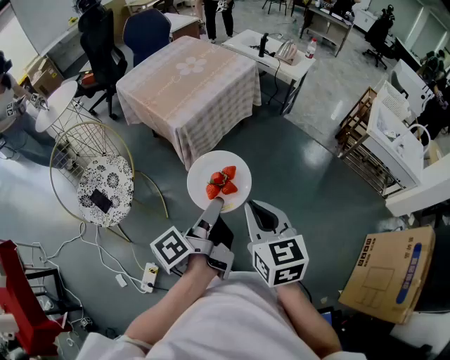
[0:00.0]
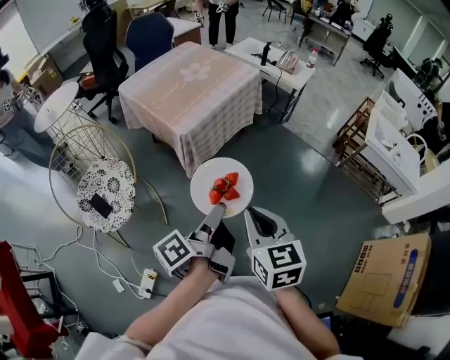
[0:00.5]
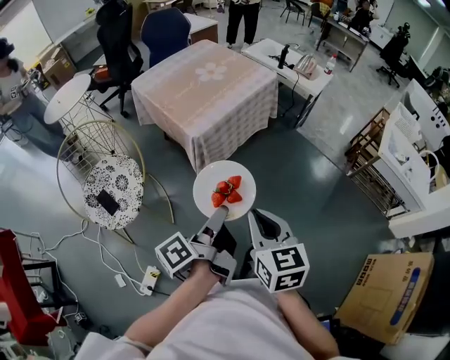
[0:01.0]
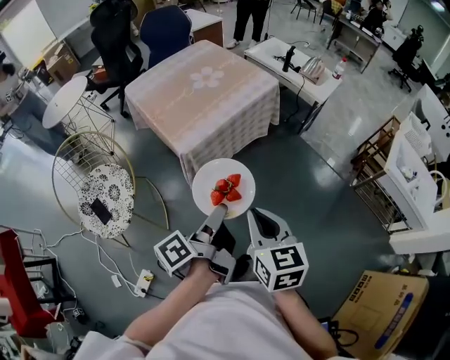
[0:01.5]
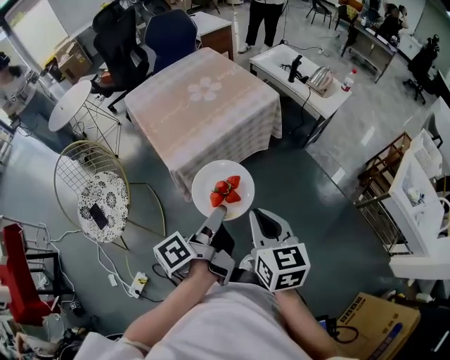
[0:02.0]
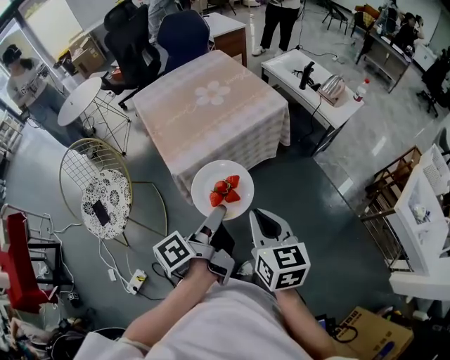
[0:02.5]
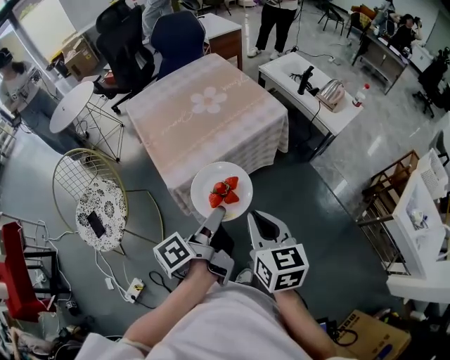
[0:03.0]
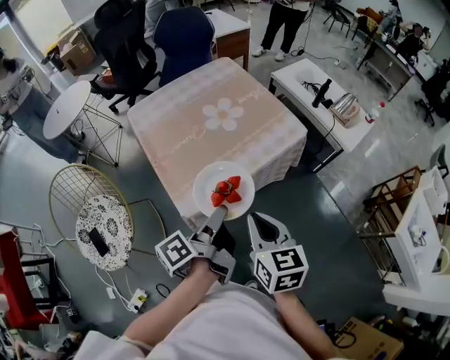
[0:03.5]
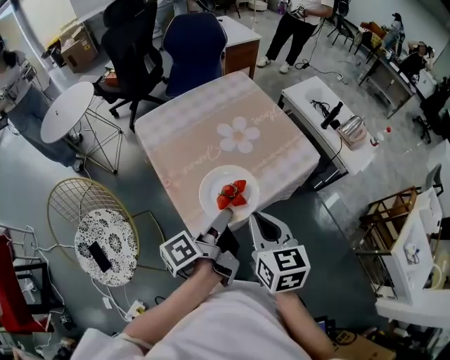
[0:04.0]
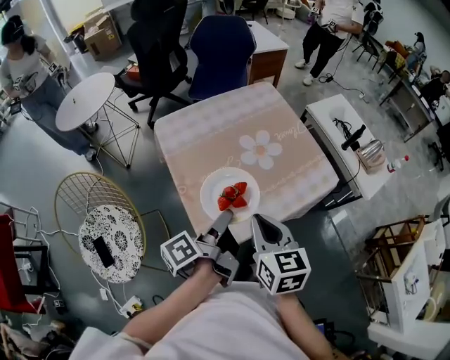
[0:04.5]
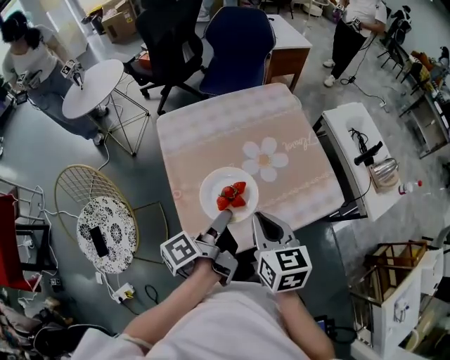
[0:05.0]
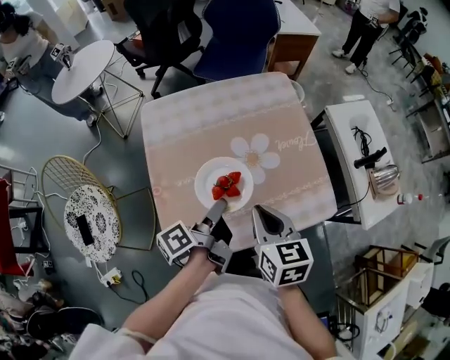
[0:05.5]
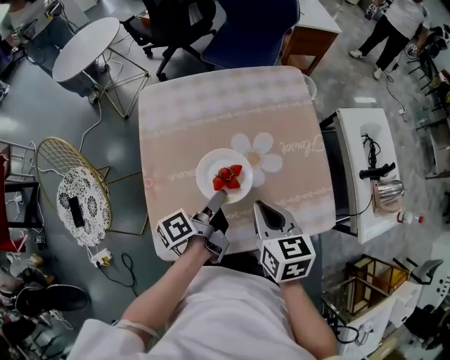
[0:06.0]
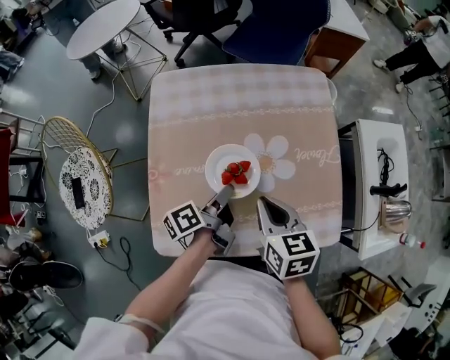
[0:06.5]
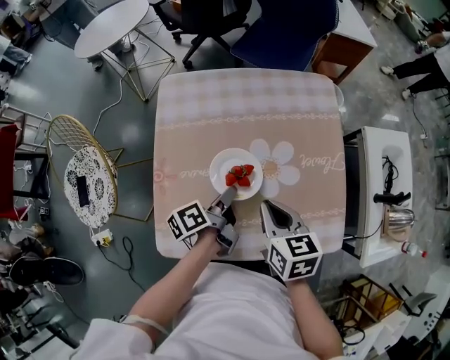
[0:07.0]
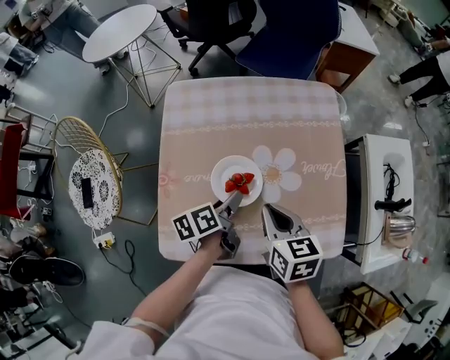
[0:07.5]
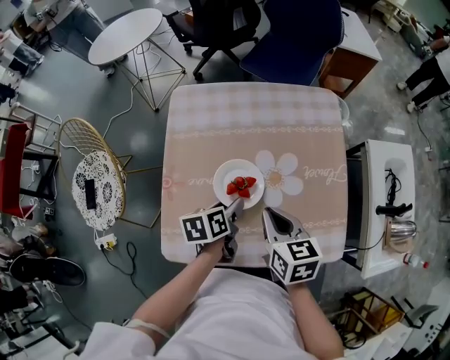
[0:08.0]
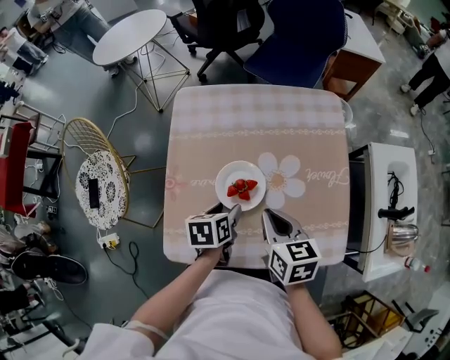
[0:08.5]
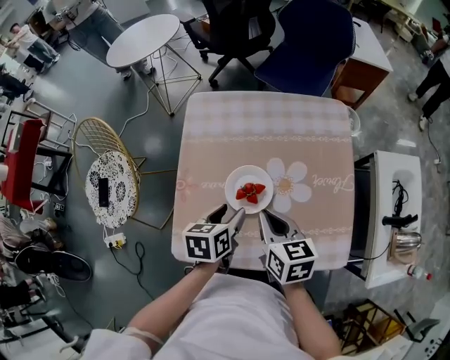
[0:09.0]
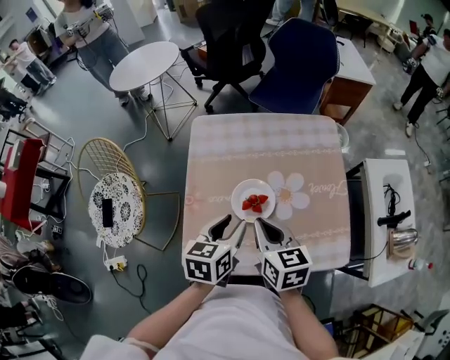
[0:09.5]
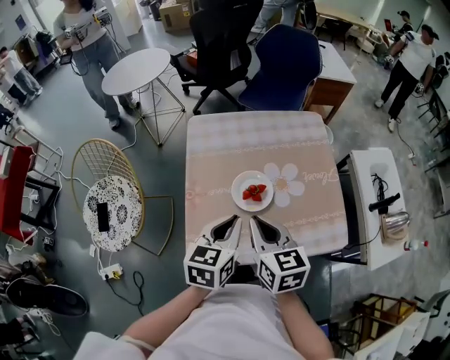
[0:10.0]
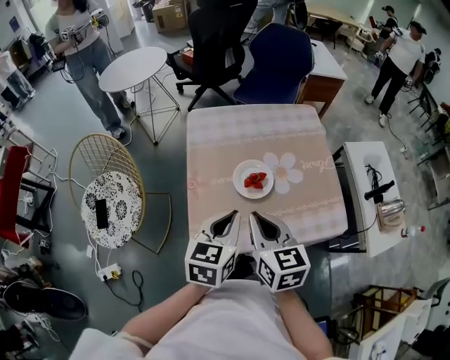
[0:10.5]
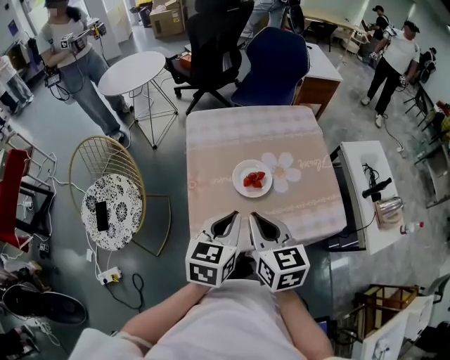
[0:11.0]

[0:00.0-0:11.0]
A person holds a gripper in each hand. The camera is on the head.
0:00.0 to 0:02.0: The right gripper ends up approximately 25 cm from where it was.
0:02.0 to 0:03.5: The right gripper moves approximately 20 cm.
0:03.5 to 0:05.5: The right gripper changes place by about 30 cm, and changes its angle by approximately 20 degrees.
0:05.5 to 0:07.5: The right gripper ends up about 10 cm from where it was.
0:09.0 to 0:11.0: The right gripper moves about 20 cm.

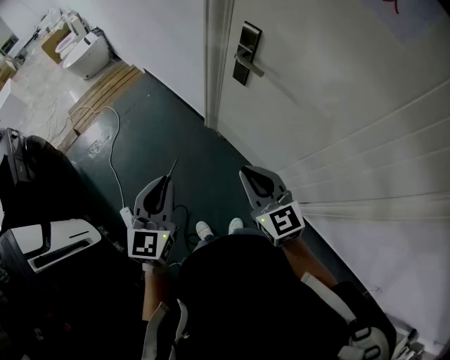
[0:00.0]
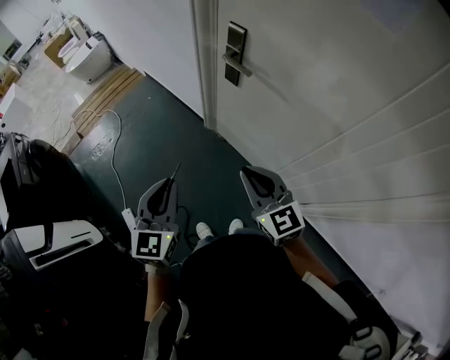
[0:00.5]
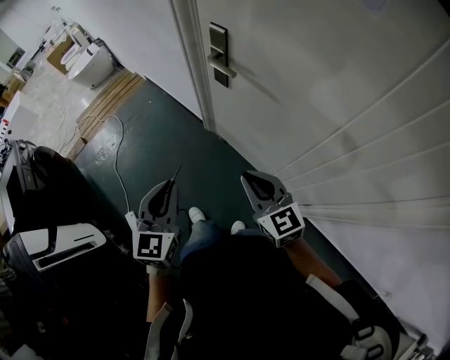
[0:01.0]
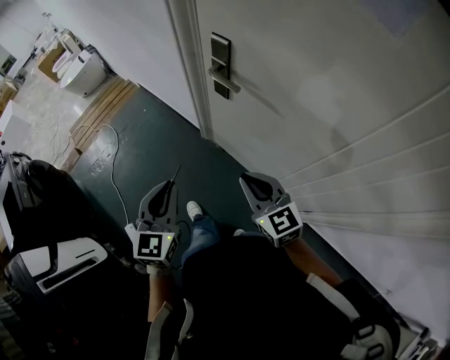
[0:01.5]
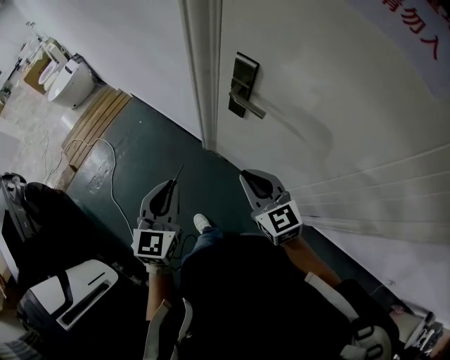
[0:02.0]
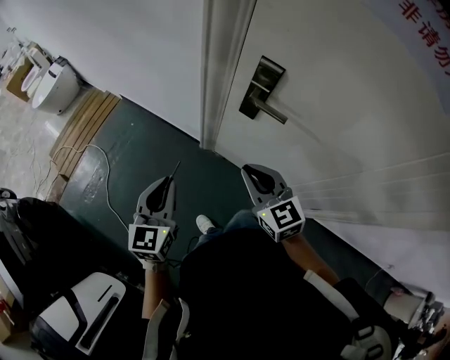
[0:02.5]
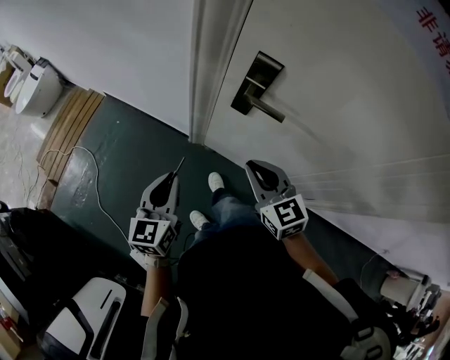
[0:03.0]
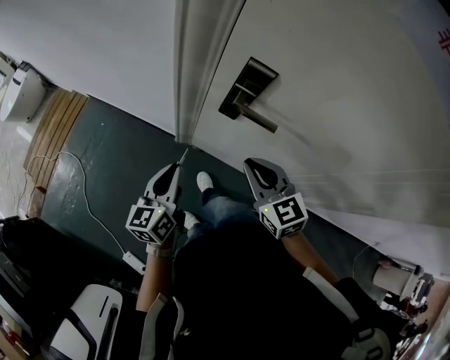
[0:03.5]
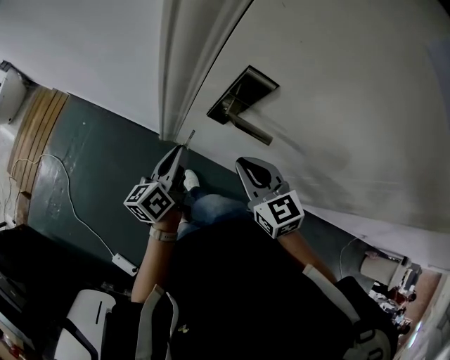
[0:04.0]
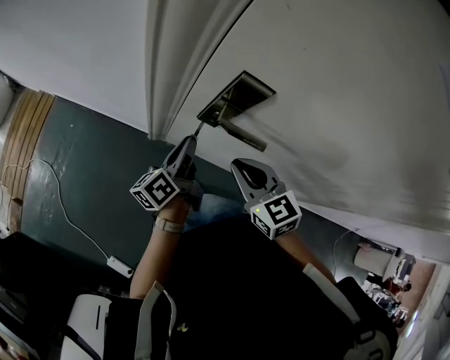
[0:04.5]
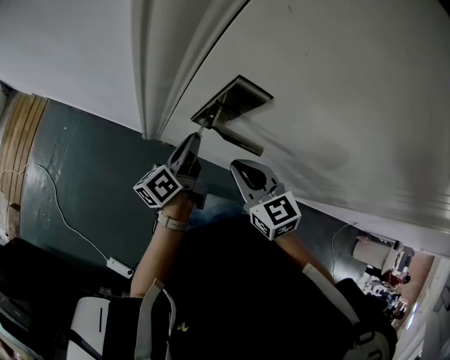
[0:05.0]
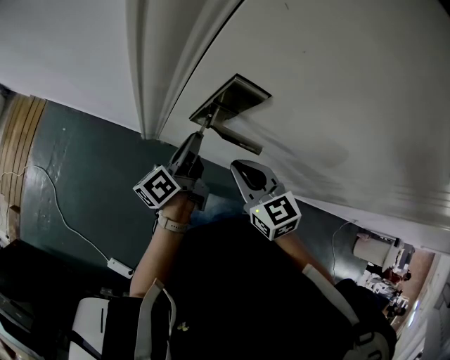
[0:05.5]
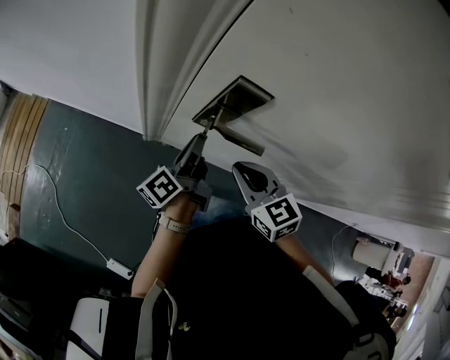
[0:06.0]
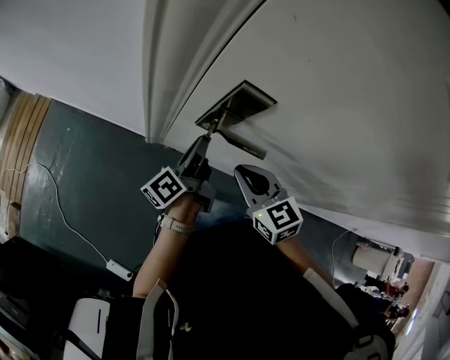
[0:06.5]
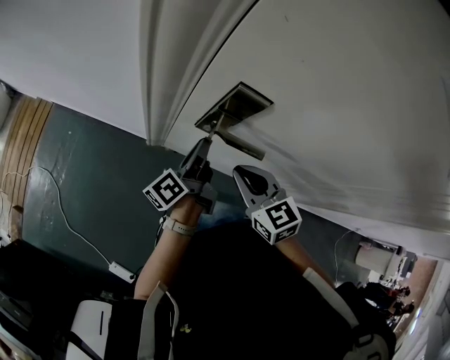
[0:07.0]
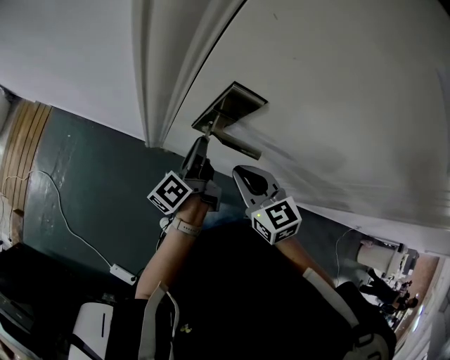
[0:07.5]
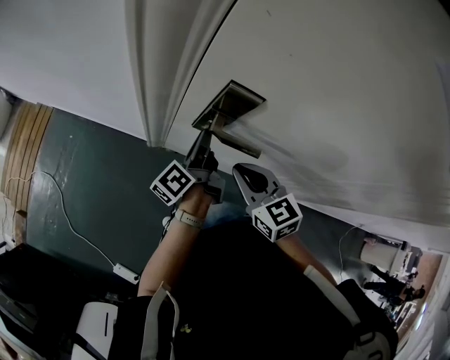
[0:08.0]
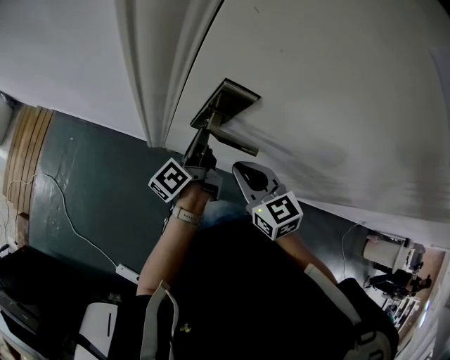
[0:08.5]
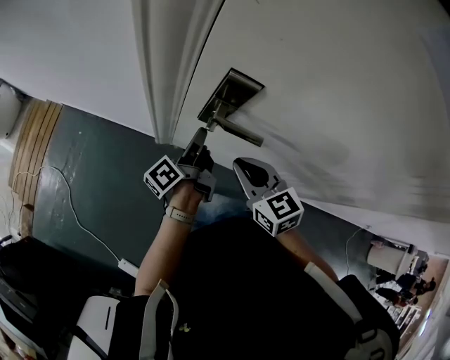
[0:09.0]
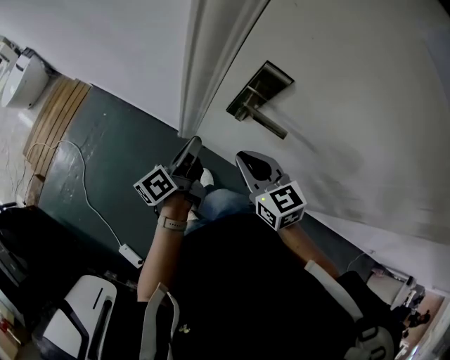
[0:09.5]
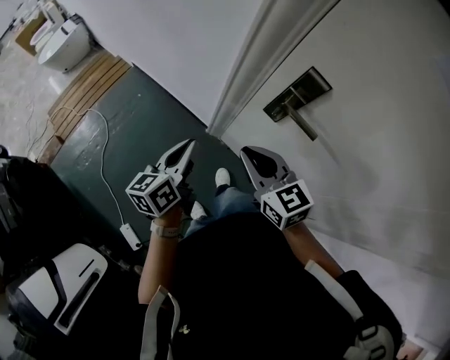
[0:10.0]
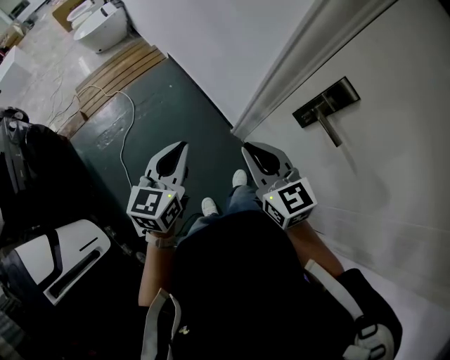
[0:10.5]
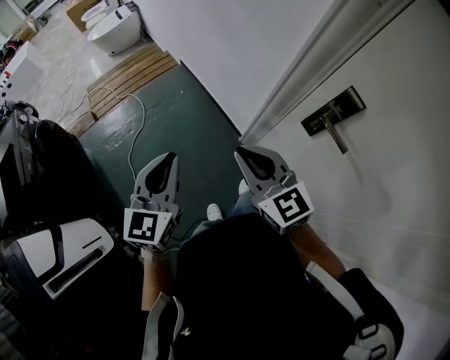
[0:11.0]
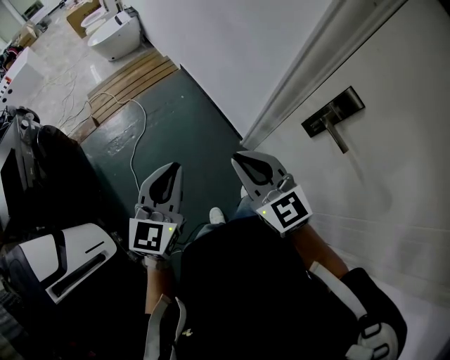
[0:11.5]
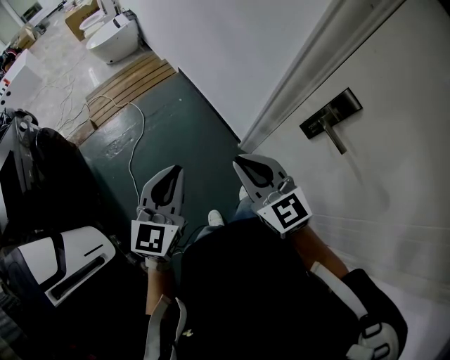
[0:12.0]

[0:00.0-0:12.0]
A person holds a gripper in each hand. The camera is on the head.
0:00.0 to 0:02.0: The two grippers go roughly 20 cm forward.
0:02.0 to 0:04.0: The left gripper travels forward and downward by about 25 cm, and rotates around the line of its fingers by approximately 60 degrees, counterclockwise from behind. Meanwhile the right gripper goes approximately 15 cm forward.
0:04.0 to 0:06.0: The left gripper moves to the right and forward, roughly 10 cm, and rotates approximately 30 degrees.
0:06.0 to 0:08.0: The grippers stay close to where they were, moving slightly.
0:08.0 to 0:10.0: The left gripper shifts about 30 cm to the left and backward, and rolls clockwise, seen from behind, by roughly 40 degrees; the right gripper heads to the left and backward, covering approximately 15 cm, and changes its angle by some 30 degrees.
0:10.0 to 0:12.0: The right gripper shifts roughly 15 cm to the left, and swivels roughly 20 degrees. Meanwhile the left gripper moves to the left, backward and upward, approximately 20 cm, and changes its angle by some 40 degrees.

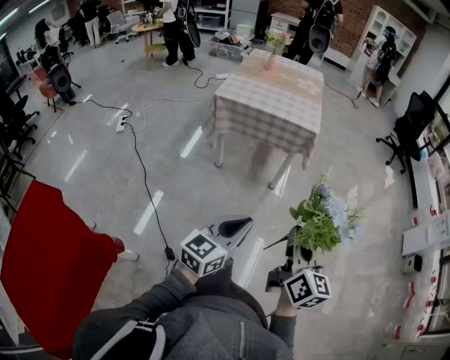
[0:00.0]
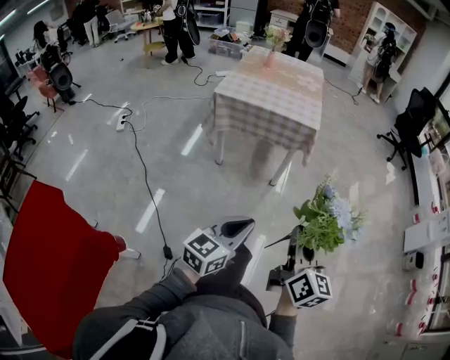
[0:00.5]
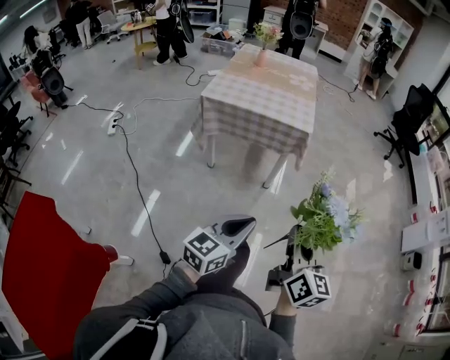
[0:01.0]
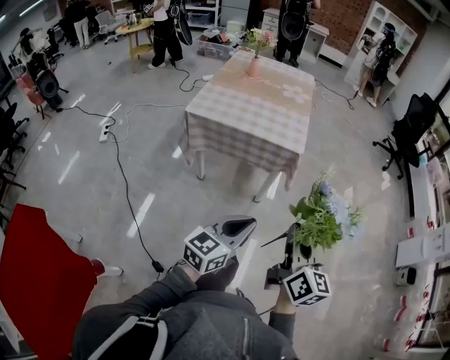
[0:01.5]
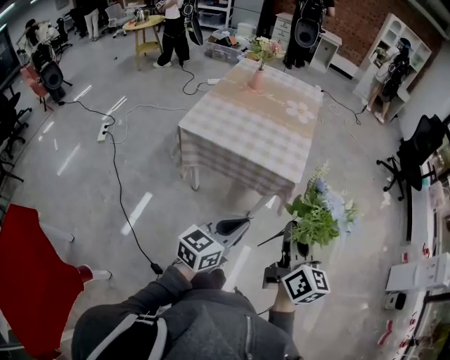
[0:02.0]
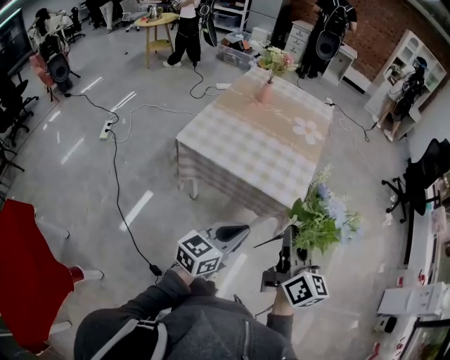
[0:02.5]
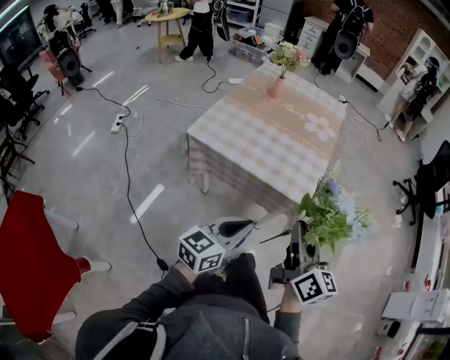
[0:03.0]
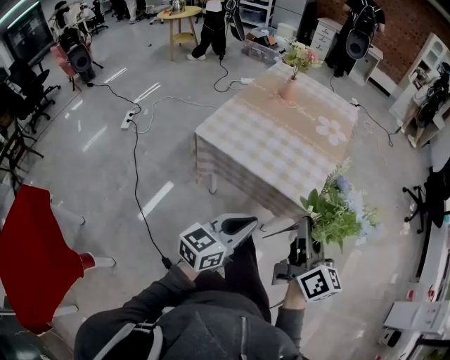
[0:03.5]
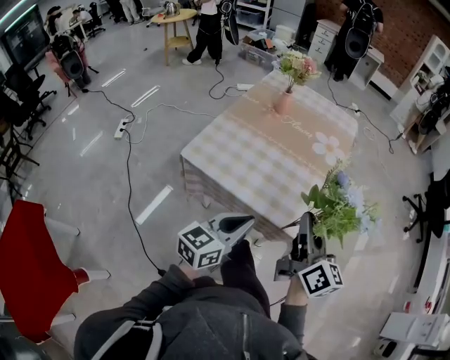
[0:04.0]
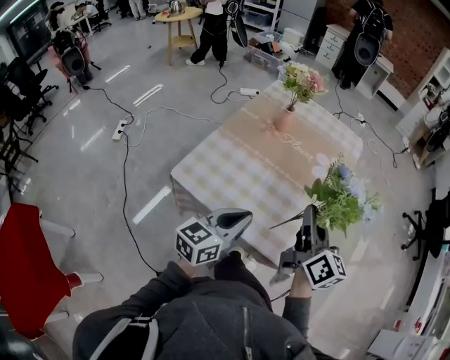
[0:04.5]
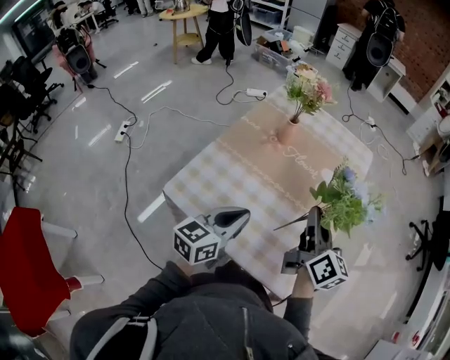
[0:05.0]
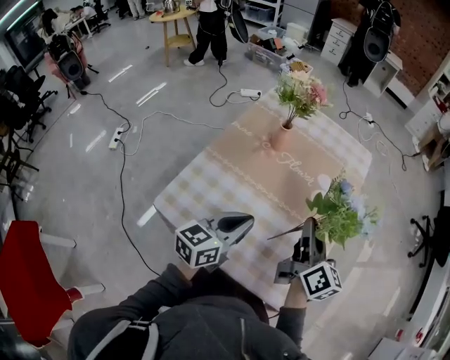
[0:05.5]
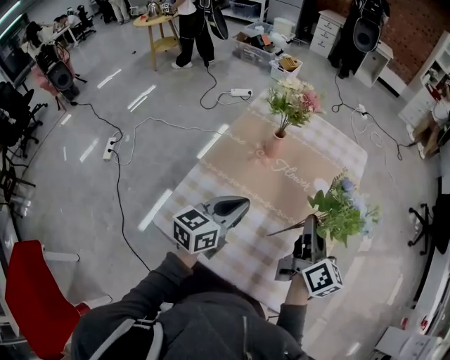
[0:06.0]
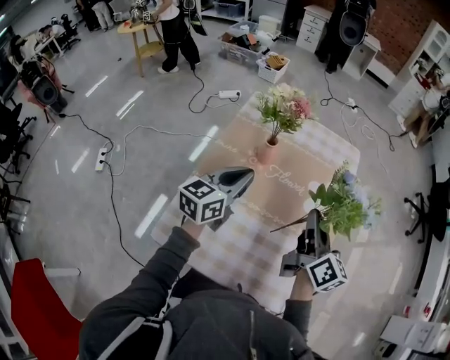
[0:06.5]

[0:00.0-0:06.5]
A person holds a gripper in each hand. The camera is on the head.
0:00.0 to 0:02.0: The two grippers go some 35 cm forward.
0:02.0 to 0:04.5: The grippers both shift forward by approximately 35 cm.
0:04.5 to 0:06.5: The left gripper moves forward, approximately 30 cm. Meanwhile the right gripper is displaced forward by roughly 20 cm.
